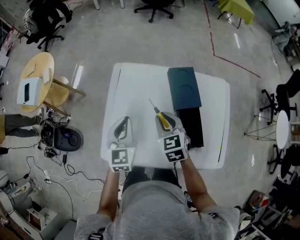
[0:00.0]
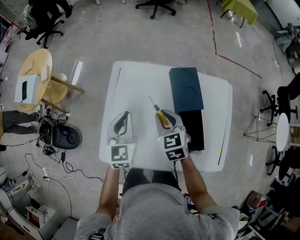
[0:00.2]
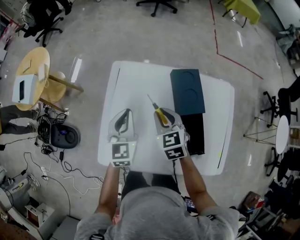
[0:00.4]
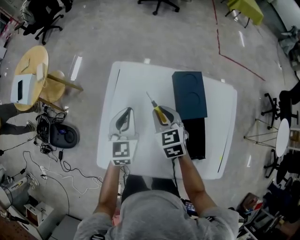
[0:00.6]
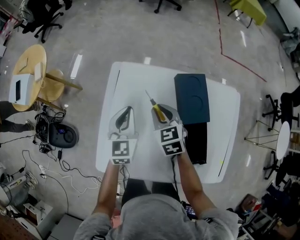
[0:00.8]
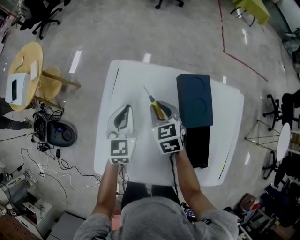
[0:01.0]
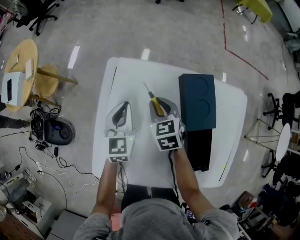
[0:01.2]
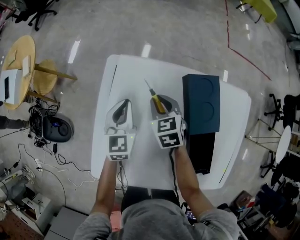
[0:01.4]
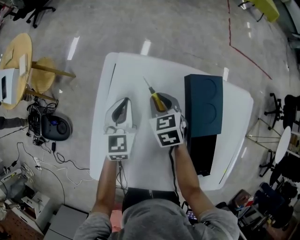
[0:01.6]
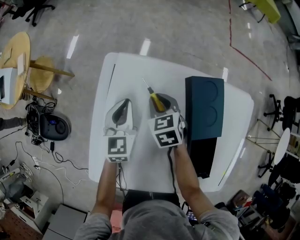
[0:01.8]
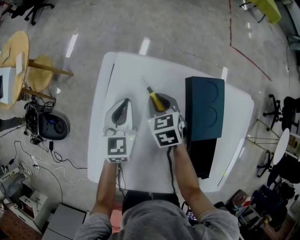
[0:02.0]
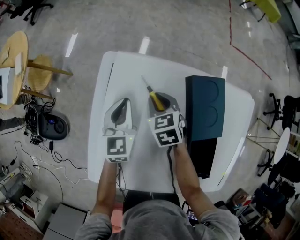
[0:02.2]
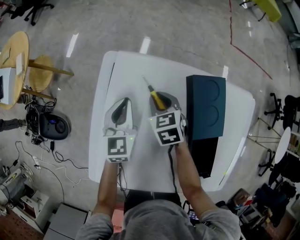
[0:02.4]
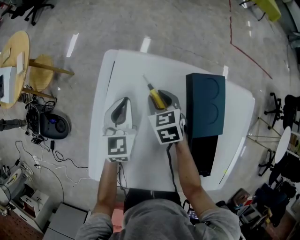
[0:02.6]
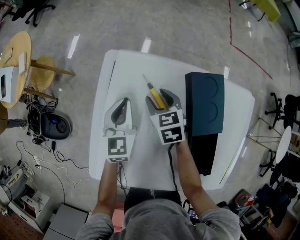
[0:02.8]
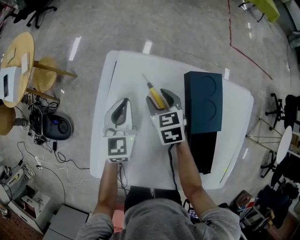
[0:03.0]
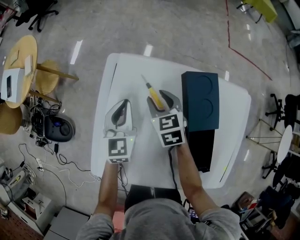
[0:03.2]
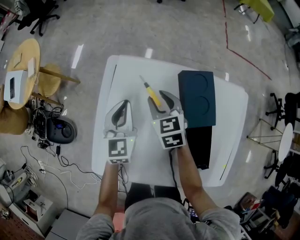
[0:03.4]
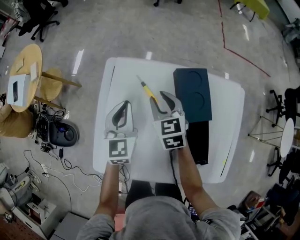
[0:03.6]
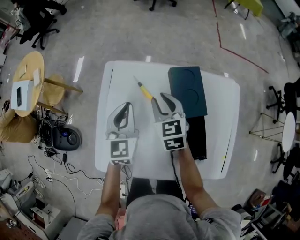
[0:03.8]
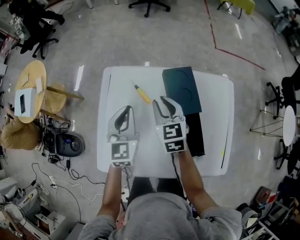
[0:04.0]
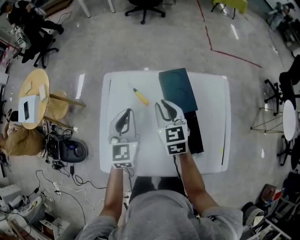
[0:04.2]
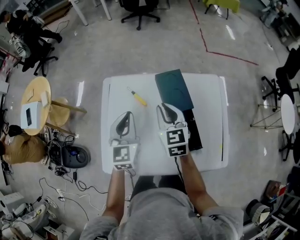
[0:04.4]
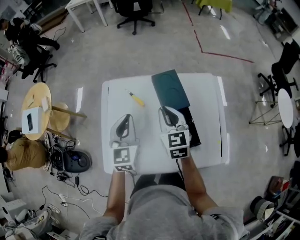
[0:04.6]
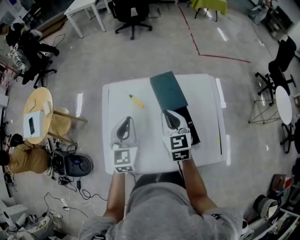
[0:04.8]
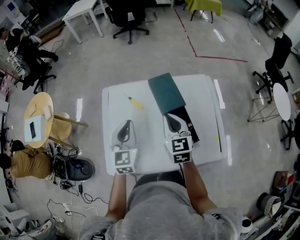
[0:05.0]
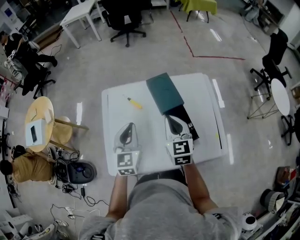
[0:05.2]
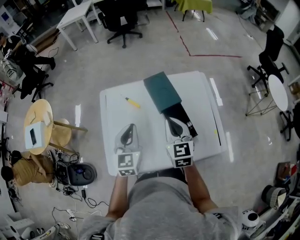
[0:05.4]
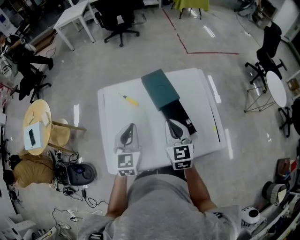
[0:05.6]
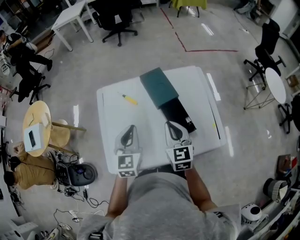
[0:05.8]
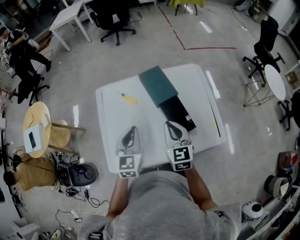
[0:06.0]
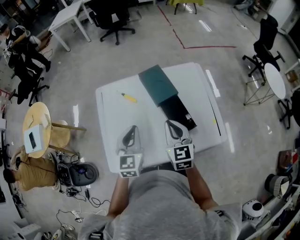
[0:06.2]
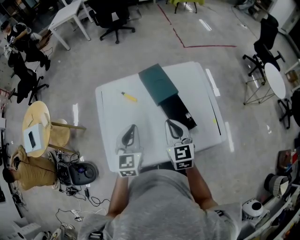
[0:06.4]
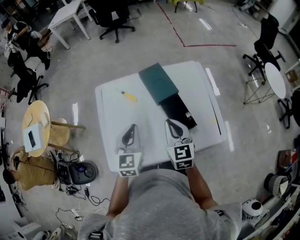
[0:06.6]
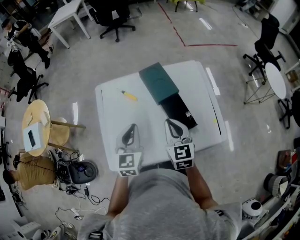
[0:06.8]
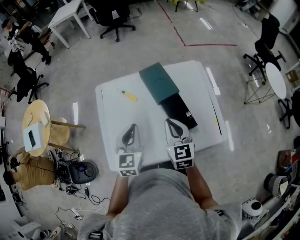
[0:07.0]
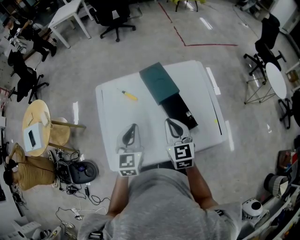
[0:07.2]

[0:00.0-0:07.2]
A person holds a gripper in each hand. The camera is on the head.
0.0 to 1.4 s: The two grippers go some 25 cm forward and downward.
1.4 to 2.8 s: The right gripper opens.
2.8 to 4.4 s: The right gripper travels upward, backward and to the right by some 30 cm, turns by roughly 30 degrees, and closes its fingers. The left gripper shifts roughly 25 cm upward and backward.
4.4 to 5.8 s: The two grippers go roughly 15 cm backward.
5.8 to 7.2 s: Both grippers stay put.

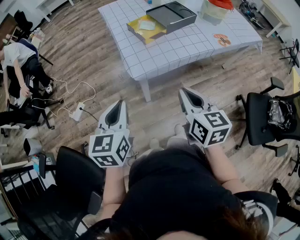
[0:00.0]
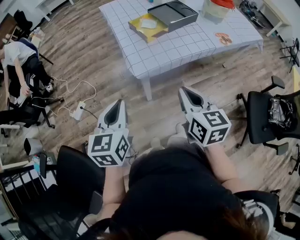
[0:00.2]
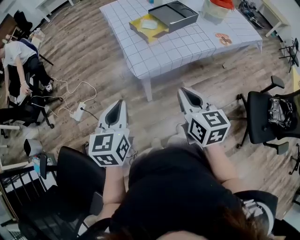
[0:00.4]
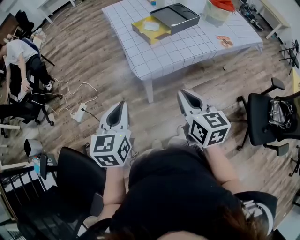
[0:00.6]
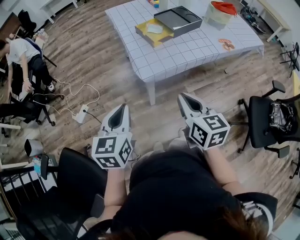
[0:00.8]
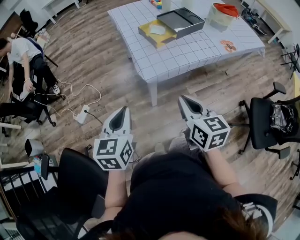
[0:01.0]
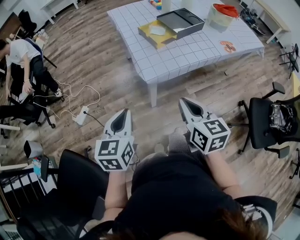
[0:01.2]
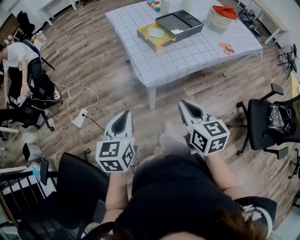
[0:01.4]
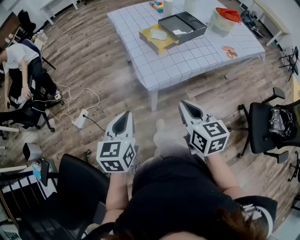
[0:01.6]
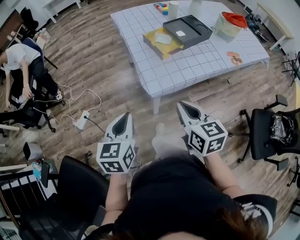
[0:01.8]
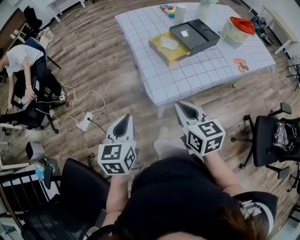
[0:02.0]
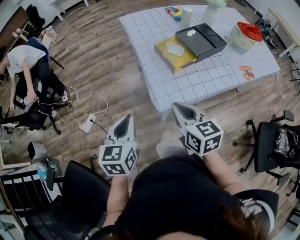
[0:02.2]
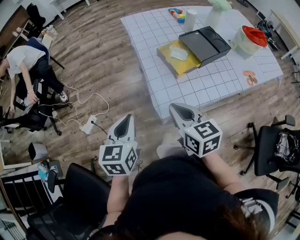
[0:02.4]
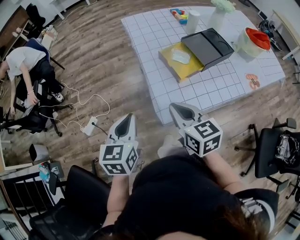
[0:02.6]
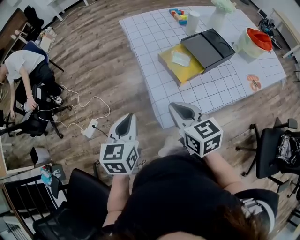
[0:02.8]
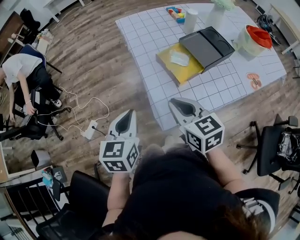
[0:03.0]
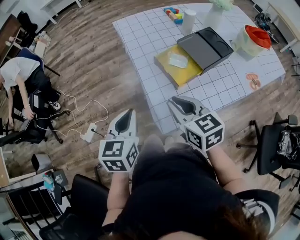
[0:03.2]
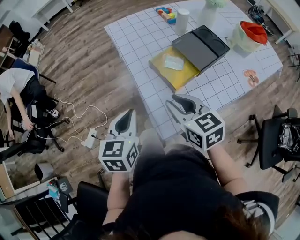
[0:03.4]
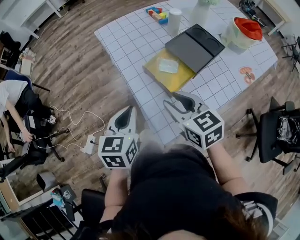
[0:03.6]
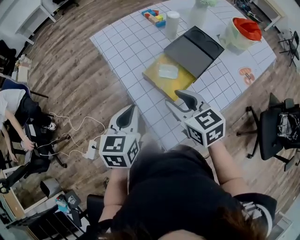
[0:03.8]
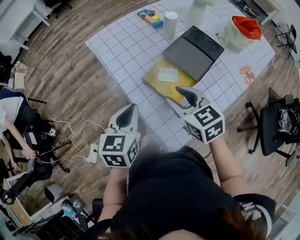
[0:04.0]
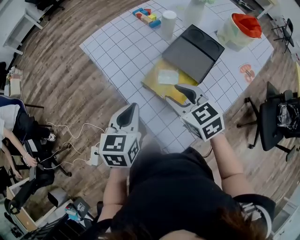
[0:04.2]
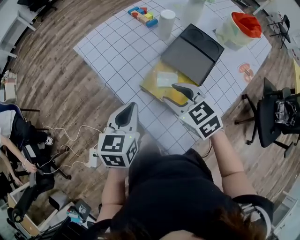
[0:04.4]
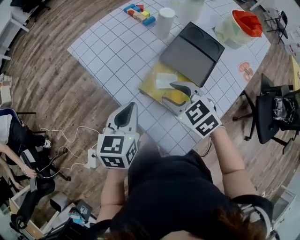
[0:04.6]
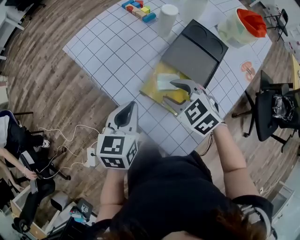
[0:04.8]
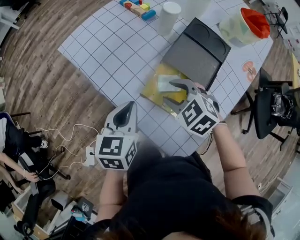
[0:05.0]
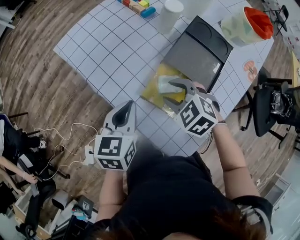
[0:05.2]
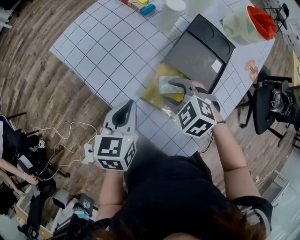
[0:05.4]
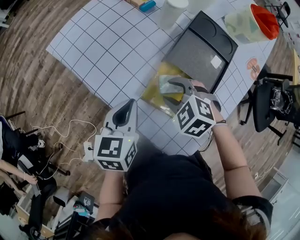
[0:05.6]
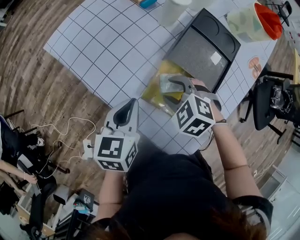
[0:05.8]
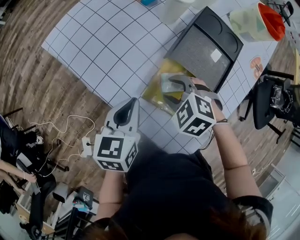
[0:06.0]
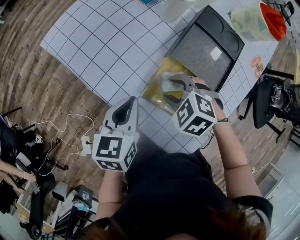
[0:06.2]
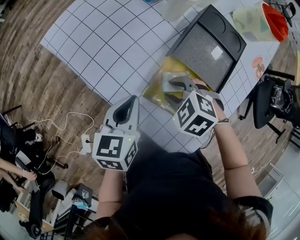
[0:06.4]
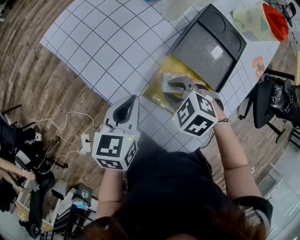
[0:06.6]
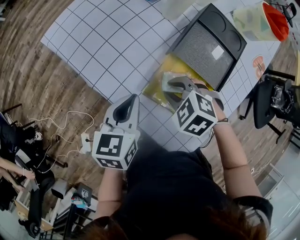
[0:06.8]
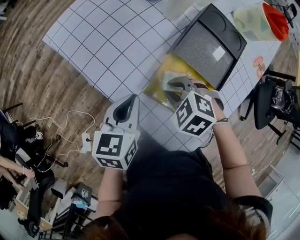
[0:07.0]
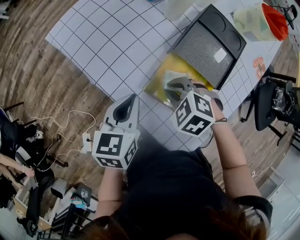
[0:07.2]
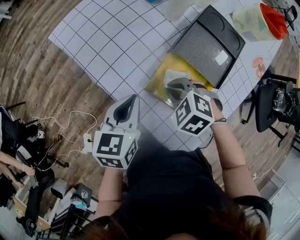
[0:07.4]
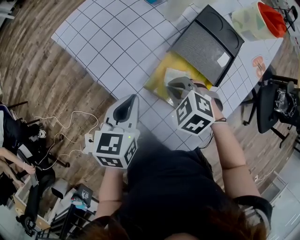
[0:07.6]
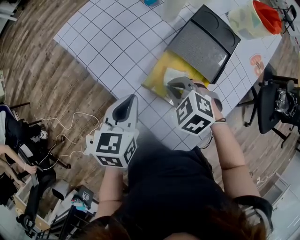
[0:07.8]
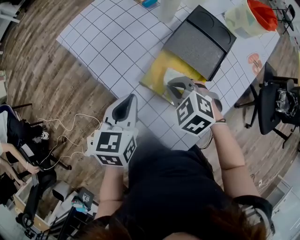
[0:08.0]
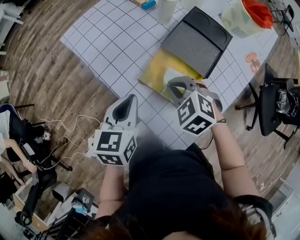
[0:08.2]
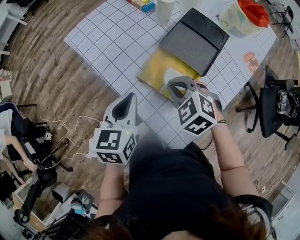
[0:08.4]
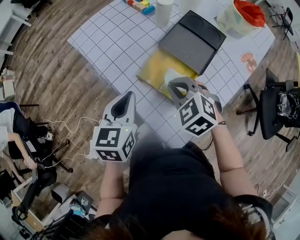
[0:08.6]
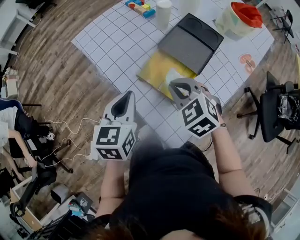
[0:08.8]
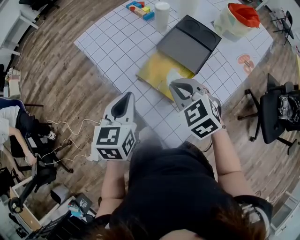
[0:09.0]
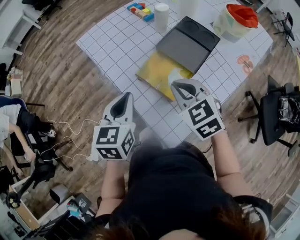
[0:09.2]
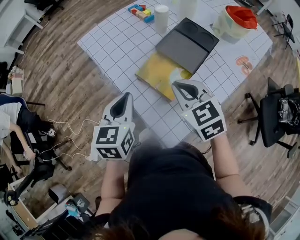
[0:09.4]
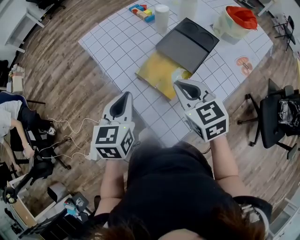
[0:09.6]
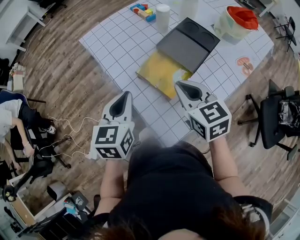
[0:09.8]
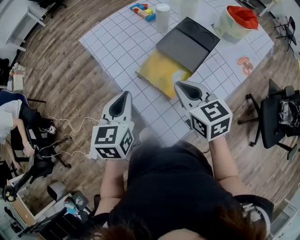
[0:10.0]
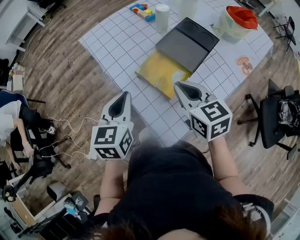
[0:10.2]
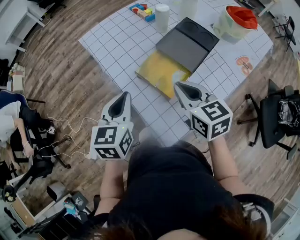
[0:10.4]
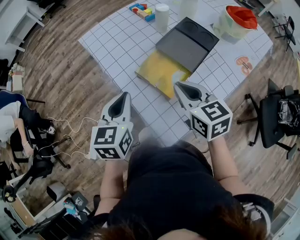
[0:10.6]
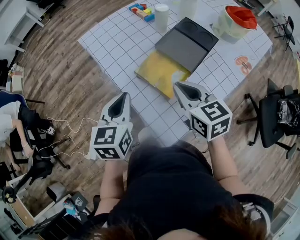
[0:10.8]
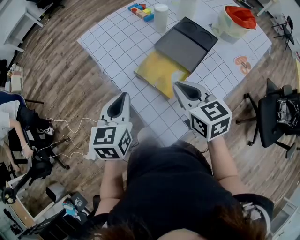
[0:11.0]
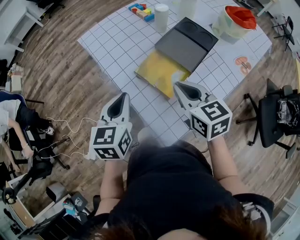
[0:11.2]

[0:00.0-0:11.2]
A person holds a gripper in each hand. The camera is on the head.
0.0 to 1.6 s: The grippers both shift to the left by approximately 5 cm.
1.6 to 3.2 s: The grippers both shift forward by approximately 25 cm.
3.2 to 4.8 s: Both grippers travel together forward, roughly 25 cm. The right gripper turns by approximately 30 degrees, and opens up. The left gripper turns by approximately 30 degrees.
4.8 to 6.4 s: The grippers both shift downward by some 5 cm. The right gripper rotates approximately 20 degrees.
6.4 to 8.0 s: The right gripper ends up approximately 5 cm from where it was, and closes. Meanwhile the left gripper shifts by about 5 cm.
8.0 to 9.6 s: Both grippers move upward and backward, approximately 15 cm. The right gripper changes its angle by about 40 degrees.
9.6 to 11.2 s: The grippers make only small movements.

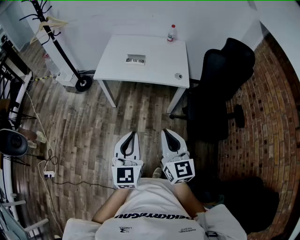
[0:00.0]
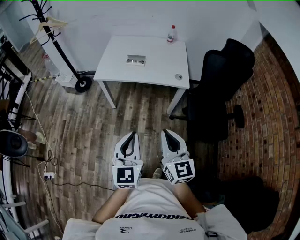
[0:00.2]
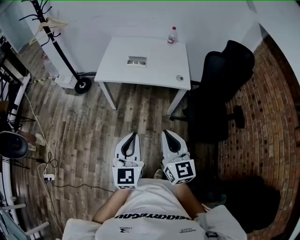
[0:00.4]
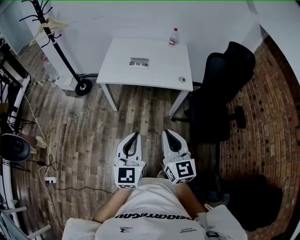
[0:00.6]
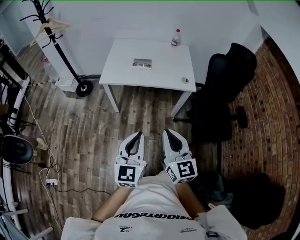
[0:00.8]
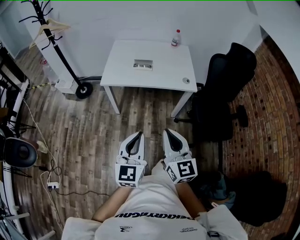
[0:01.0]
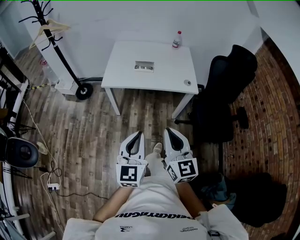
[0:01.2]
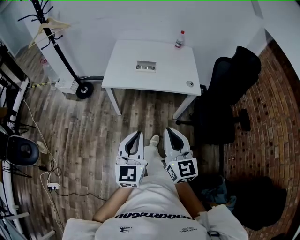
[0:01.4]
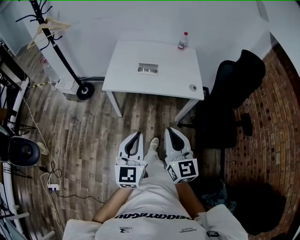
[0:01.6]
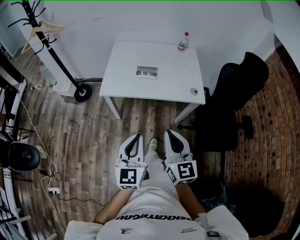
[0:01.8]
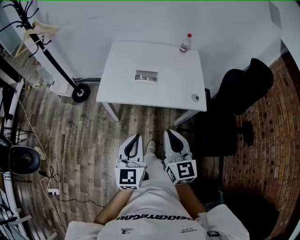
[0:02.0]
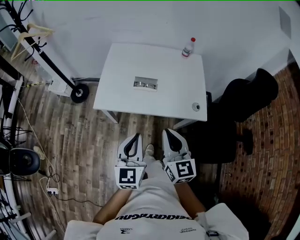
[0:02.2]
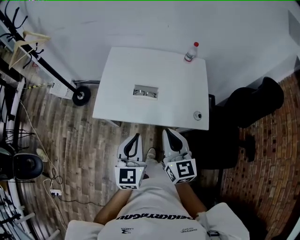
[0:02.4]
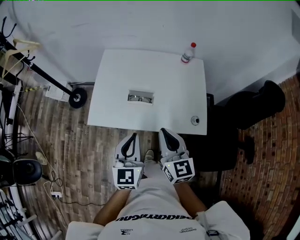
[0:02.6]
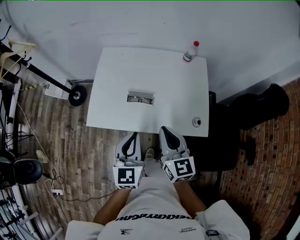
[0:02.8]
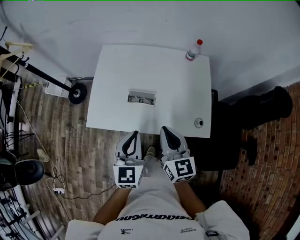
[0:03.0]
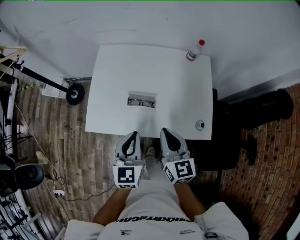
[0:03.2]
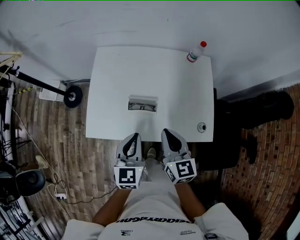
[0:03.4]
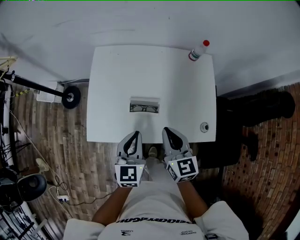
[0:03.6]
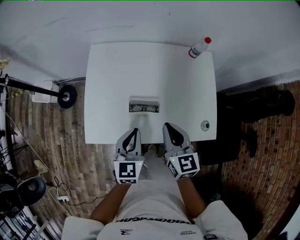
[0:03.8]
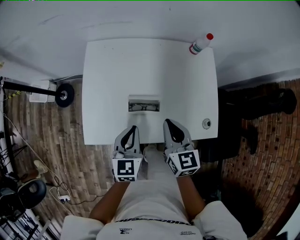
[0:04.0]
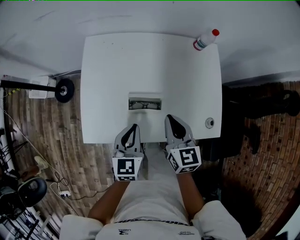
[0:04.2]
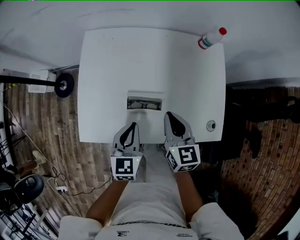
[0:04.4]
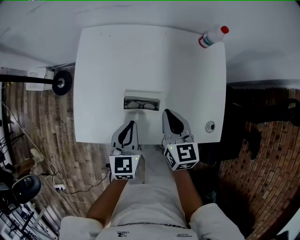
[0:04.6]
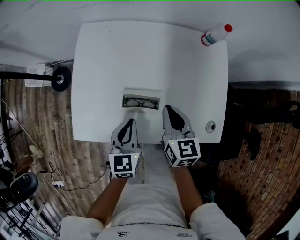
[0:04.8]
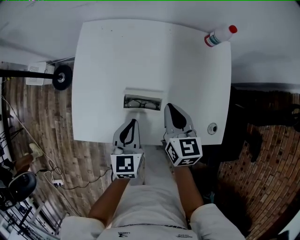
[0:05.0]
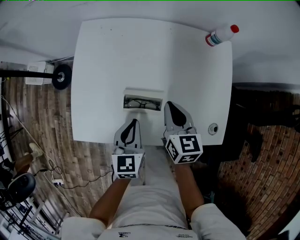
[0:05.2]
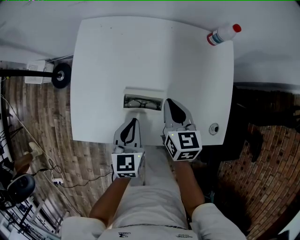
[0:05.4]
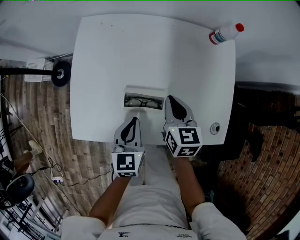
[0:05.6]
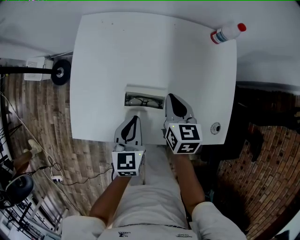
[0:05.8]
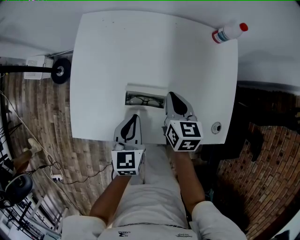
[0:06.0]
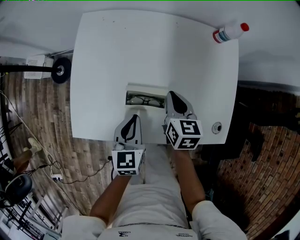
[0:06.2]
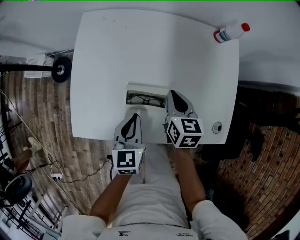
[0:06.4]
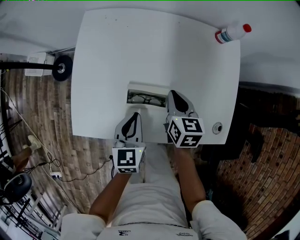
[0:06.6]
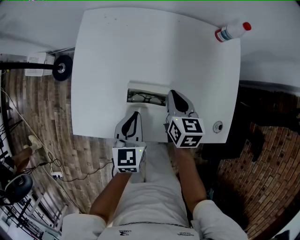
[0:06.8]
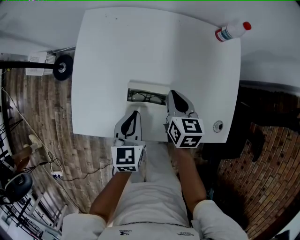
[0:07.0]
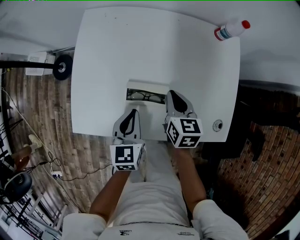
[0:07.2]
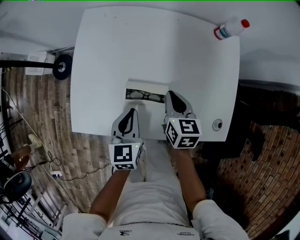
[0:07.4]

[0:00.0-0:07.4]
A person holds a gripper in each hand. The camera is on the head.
0.0 to 1.4 s: The grippers both shift to the left and forward by about 15 cm.
1.4 to 3.0 s: The two grippers travel together, forward, approximately 50 cm.
3.0 to 4.4 s: The right gripper shifts approximately 20 cm forward and downward. The left gripper travels downward and forward by about 20 cm.
4.4 to 6.0 s: The left gripper moves downward, some 5 cm, while the right gripper shifts about 10 cm downward and forward.
6.0 to 7.4 s: The grippers move only a little.
